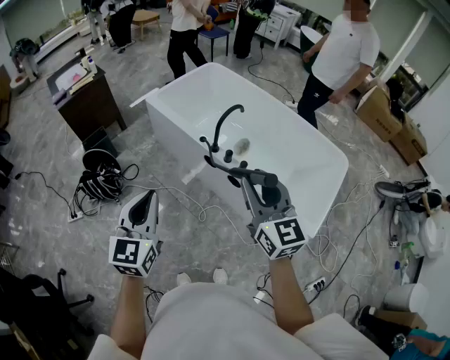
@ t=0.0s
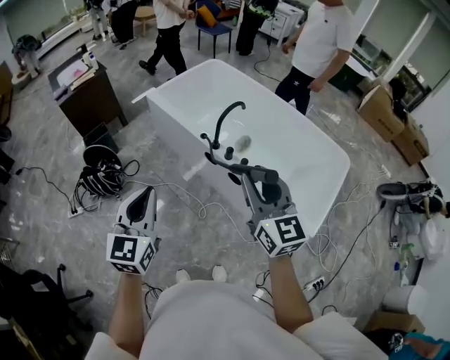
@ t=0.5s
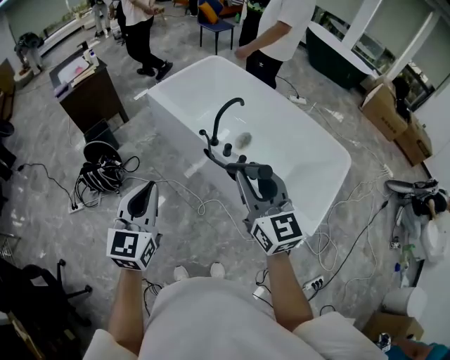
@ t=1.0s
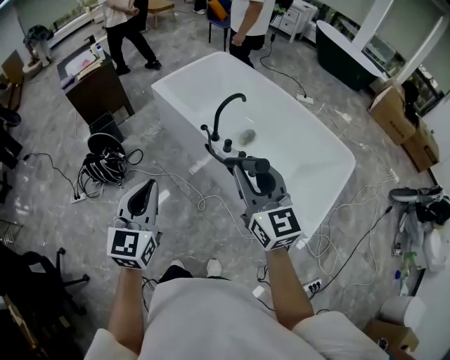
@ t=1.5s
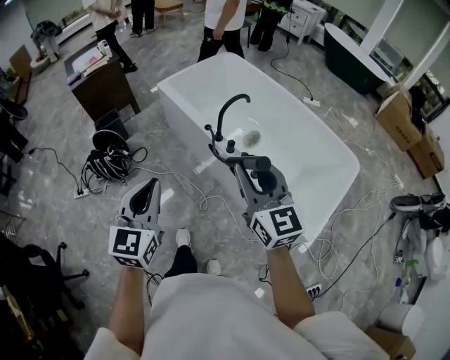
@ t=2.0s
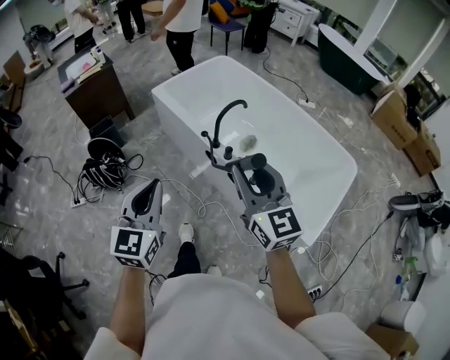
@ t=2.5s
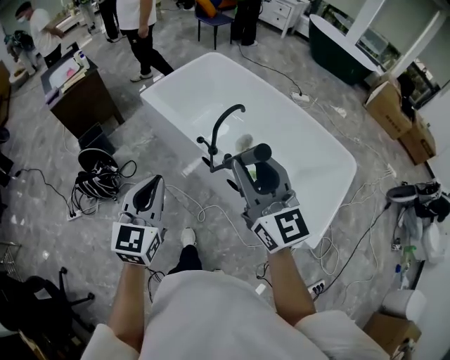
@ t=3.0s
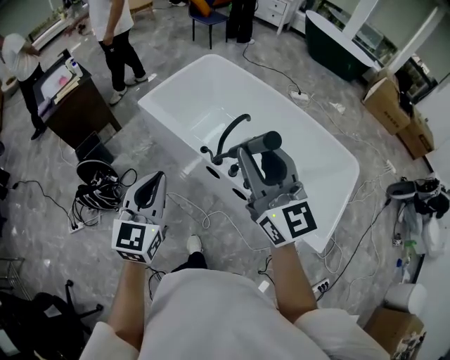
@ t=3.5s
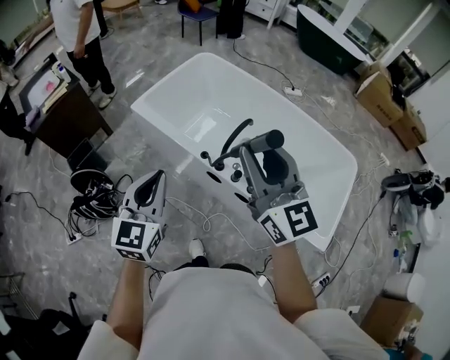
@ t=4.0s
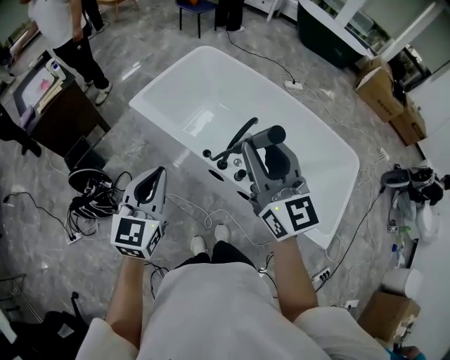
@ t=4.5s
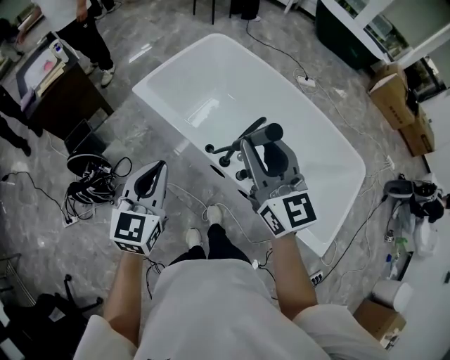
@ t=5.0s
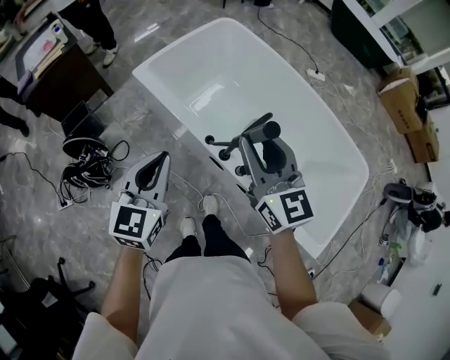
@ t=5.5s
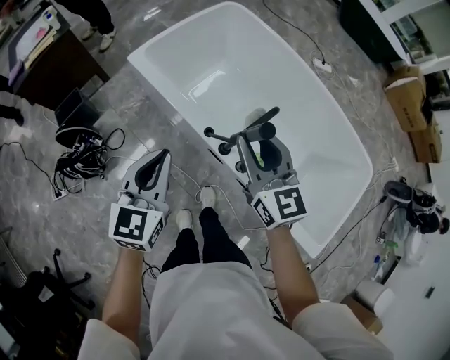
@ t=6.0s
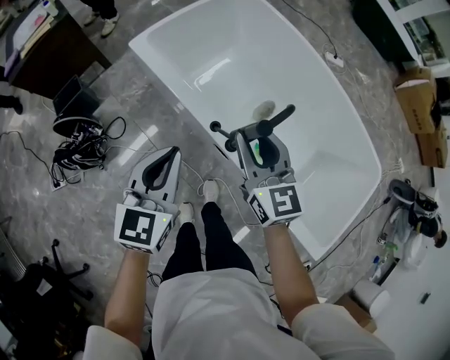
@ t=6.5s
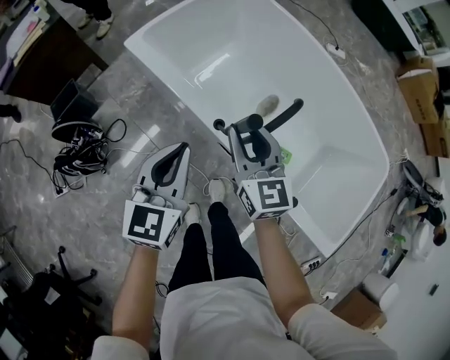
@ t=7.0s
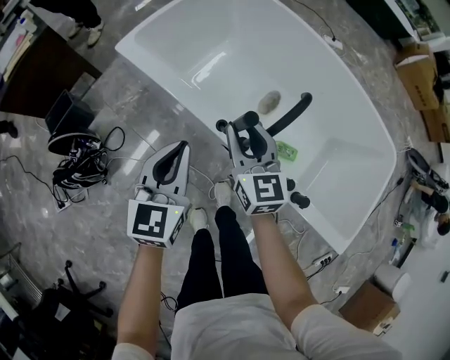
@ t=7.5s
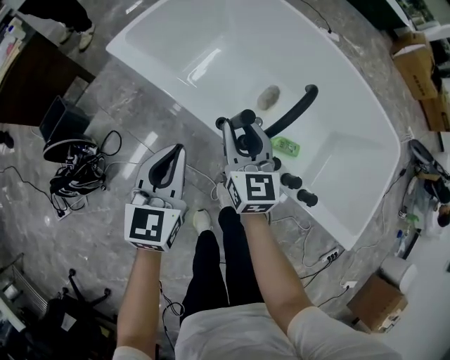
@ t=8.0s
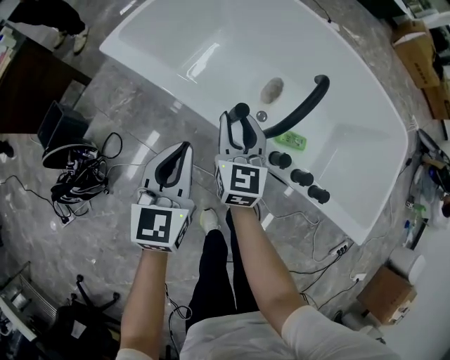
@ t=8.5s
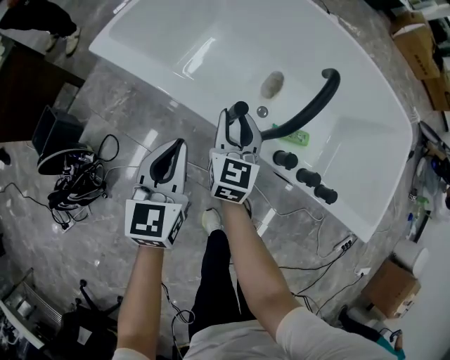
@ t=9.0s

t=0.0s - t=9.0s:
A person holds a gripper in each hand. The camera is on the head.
t=0.0s - t=2.0s: The left gripper travels to the right by about 5 cm.
t=2.0s - t=4.5s: Both grippers travel together forward, some 30 cm.
t=4.5s - t=7.0s: The right gripper moves downward and forward, some 35 cm. The left gripper goes approximately 20 cm downward and forward.
t=7.0s - t=9.0s: Both grippers move downward, roughly 20 cm. The right gripper rotates some 30 degrees.

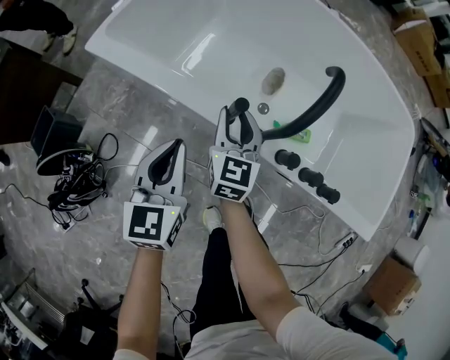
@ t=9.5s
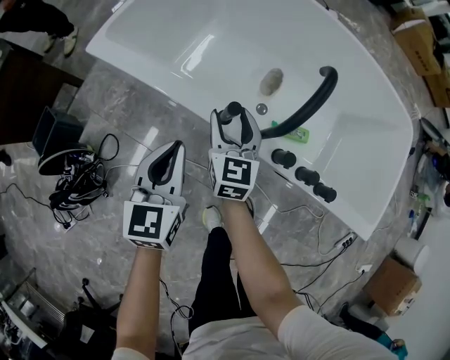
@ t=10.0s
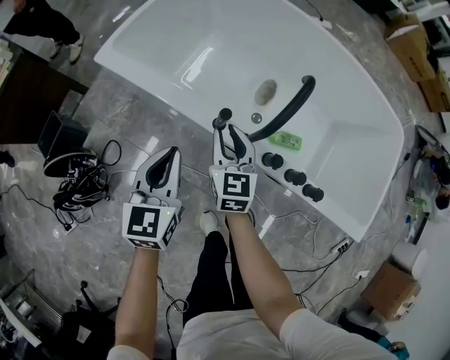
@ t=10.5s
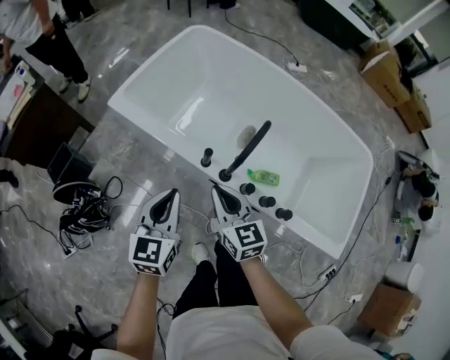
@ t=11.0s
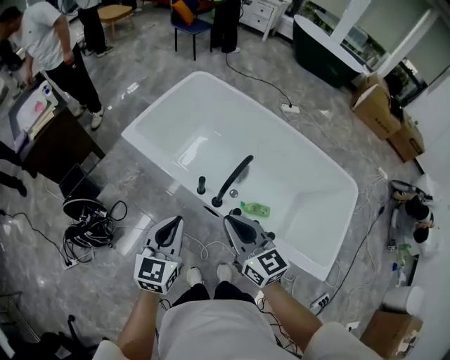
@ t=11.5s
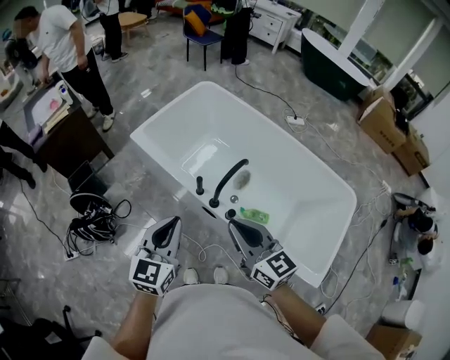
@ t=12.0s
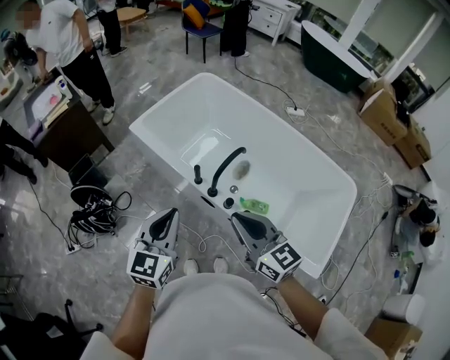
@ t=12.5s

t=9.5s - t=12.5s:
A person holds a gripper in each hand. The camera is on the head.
t=9.5s - t=11.0s: The two grippers go roughly 20 cm upward and backward. The right gripper turns by approximately 30 degrees, and closes up.
t=11.0s - t=12.5s: The right gripper heads upward, backward and to the right, covering roughly 25 cm, and changes its angle by some 20 degrees, while the left gripper moves upward and backward, some 20 cm.

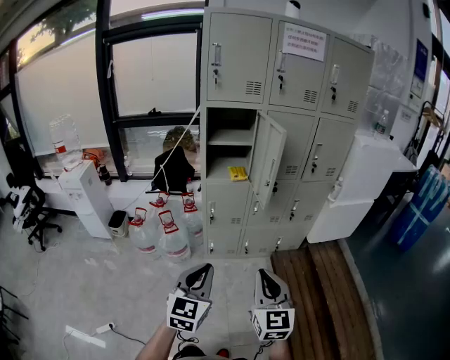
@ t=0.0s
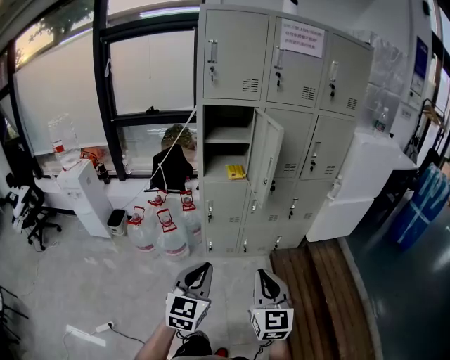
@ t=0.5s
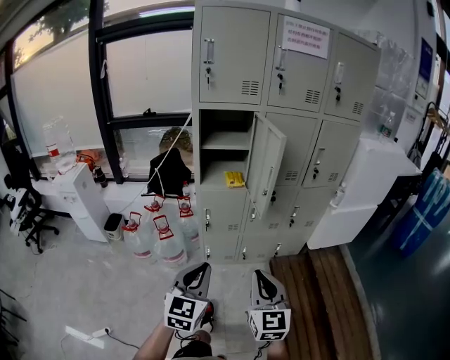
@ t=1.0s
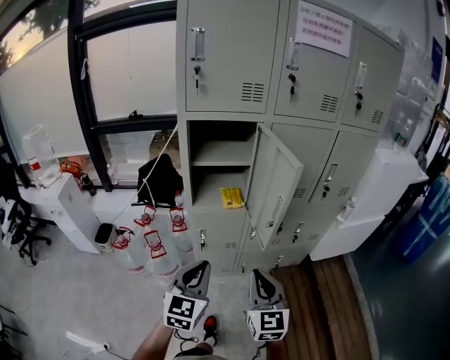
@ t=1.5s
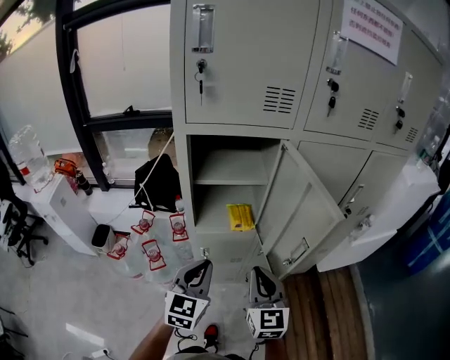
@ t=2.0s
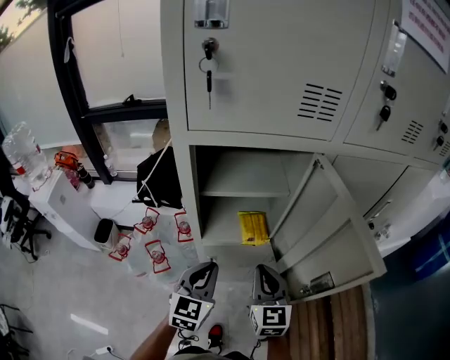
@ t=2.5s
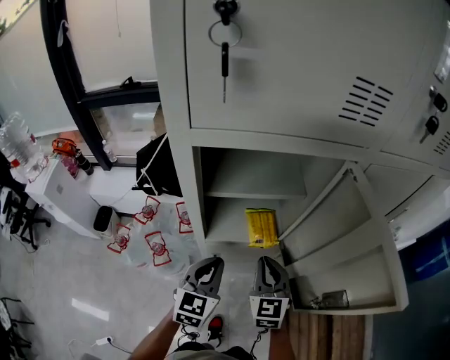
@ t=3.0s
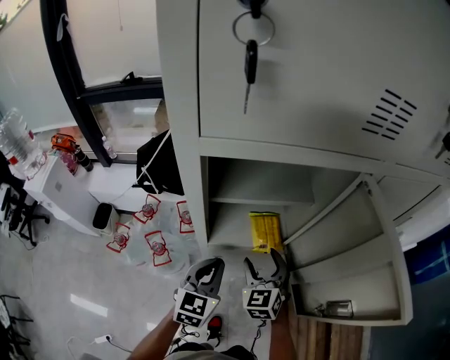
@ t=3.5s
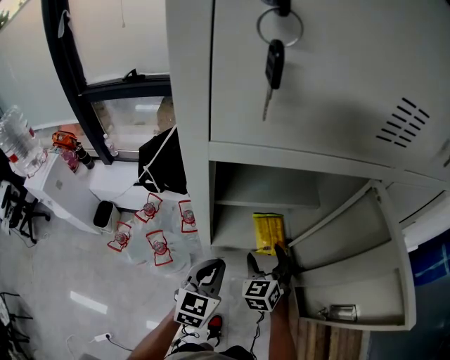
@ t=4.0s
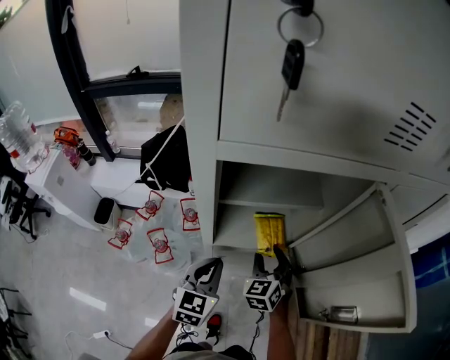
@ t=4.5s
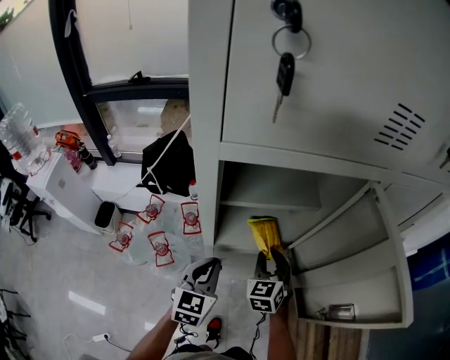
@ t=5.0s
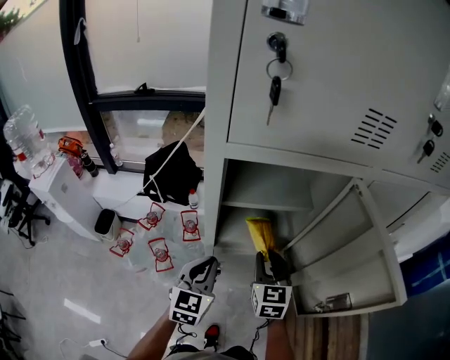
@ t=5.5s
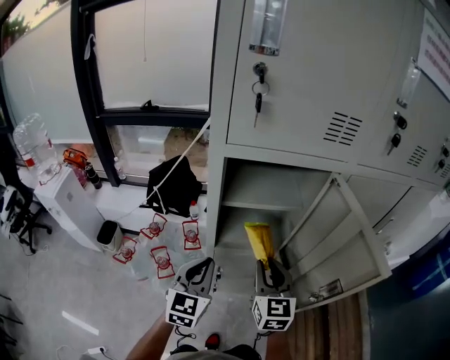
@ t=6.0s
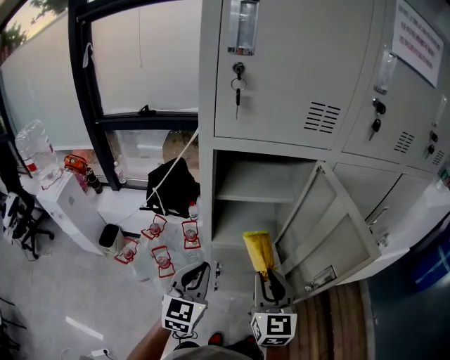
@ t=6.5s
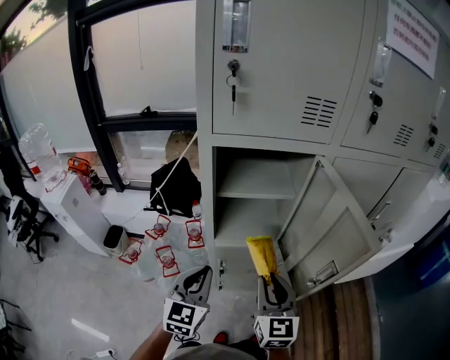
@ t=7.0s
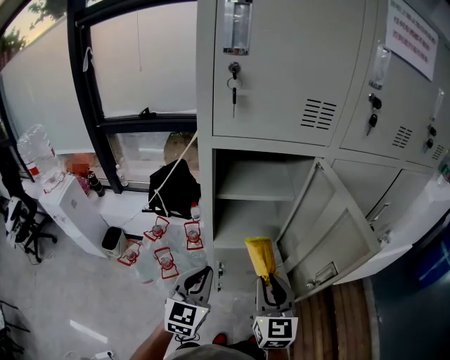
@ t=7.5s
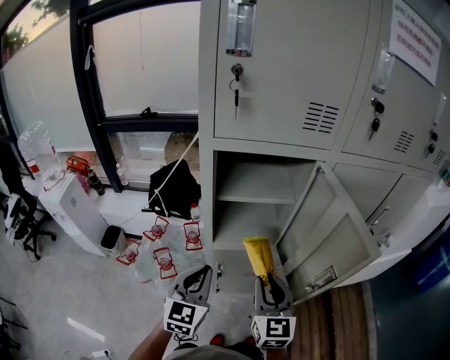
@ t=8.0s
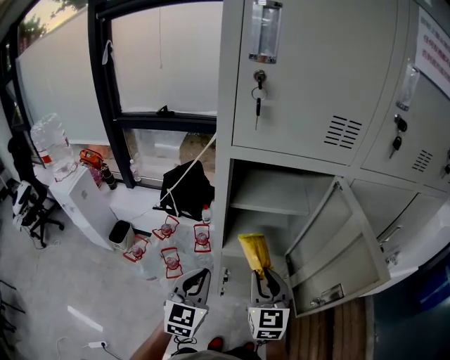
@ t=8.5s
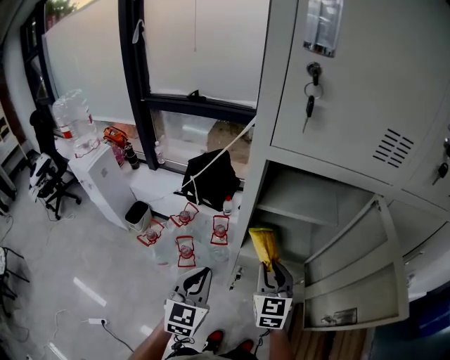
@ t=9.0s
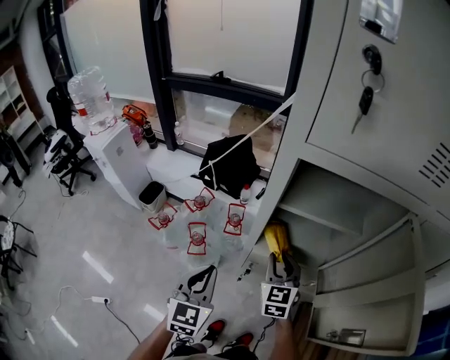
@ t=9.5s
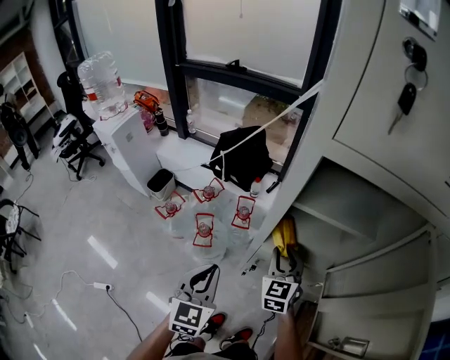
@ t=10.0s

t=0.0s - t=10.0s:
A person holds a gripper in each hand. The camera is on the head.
t=0.0s - t=2.0s: Both grippers are carried forward, roughly 40 cm.
t=2.0s - t=4.0s: The left gripper moves forward and downward, approximately 15 cm, while the right gripper goes roughly 25 cm forward and downward, changes its angle by roughly 30 degrees, and opens its fingers.
t=4.0s - t=6.0s: The left gripper shifts some 10 cm upward and backward. The right gripper shifts approximately 15 cm upward and backward, turns by about 30 degrees, and closes.
t=6.0s - t=8.0s: The left gripper ends up some 5 cm from where it was. Meanwhile the right gripper travels backward by roughly 10 cm.
t=8.0s - t=10.0s: The left gripper moves to the left and downward, approximately 10 cm, and turns by roughly 30 degrees; the right gripper heads forward, downward and to the left, covering approximately 25 cm, and changes its angle by roughly 20 degrees.

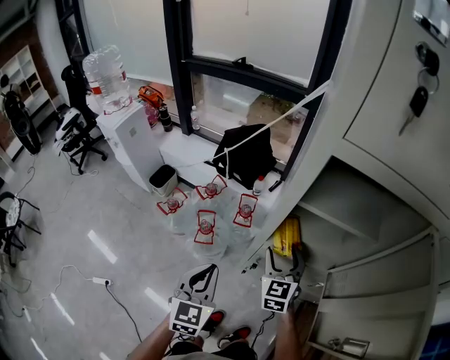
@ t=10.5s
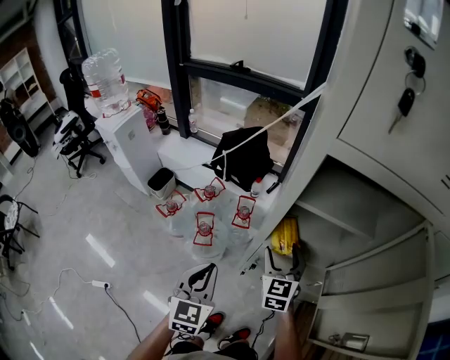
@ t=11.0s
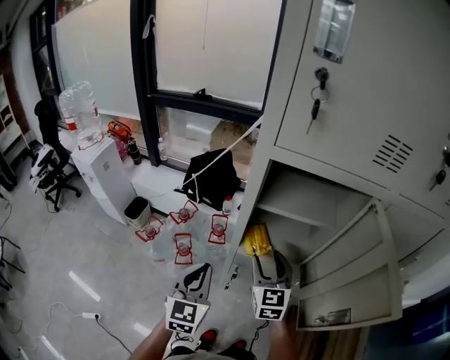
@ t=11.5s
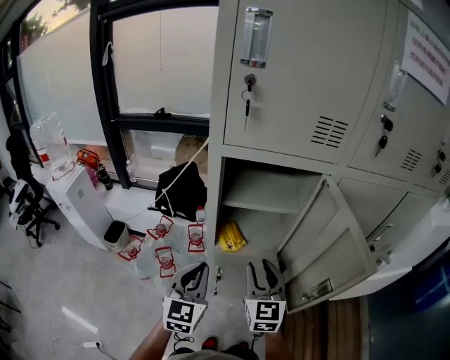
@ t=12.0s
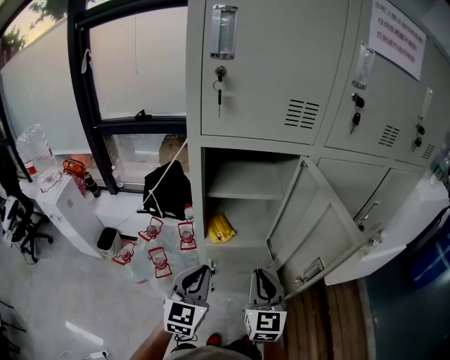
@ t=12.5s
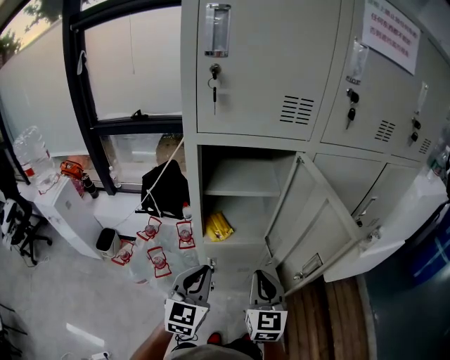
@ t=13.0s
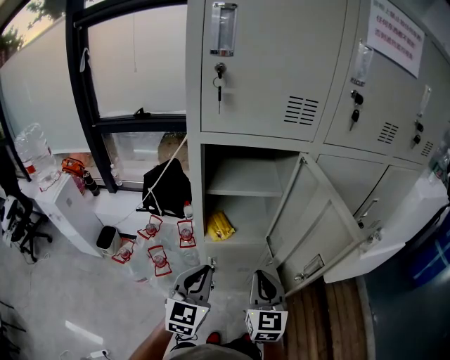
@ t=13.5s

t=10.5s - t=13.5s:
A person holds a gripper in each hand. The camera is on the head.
t=10.5s - t=12.0s: The right gripper goes about 20 cm upward, backward and to the right, while the left gripper heads upward and to the right, covering approximately 15 cm, and changes its angle by about 20 degrees.
t=12.0s - t=13.5s: The right gripper heads backward, covering about 5 cm, and closes up. Meanwhile the left gripper shifts by roughly 5 cm.

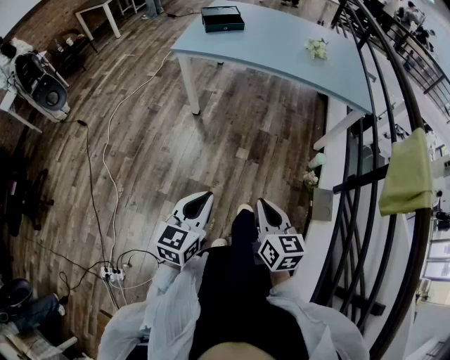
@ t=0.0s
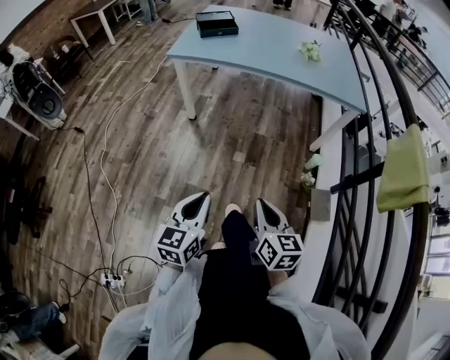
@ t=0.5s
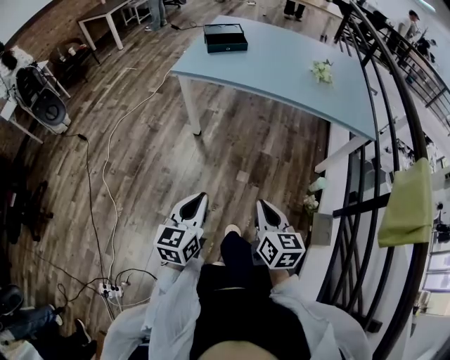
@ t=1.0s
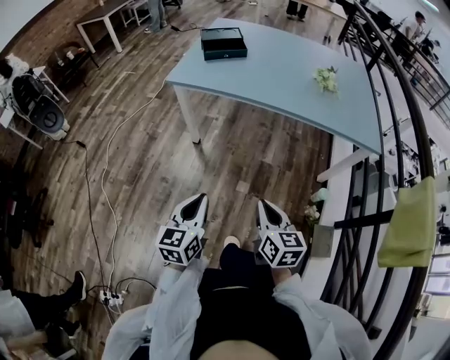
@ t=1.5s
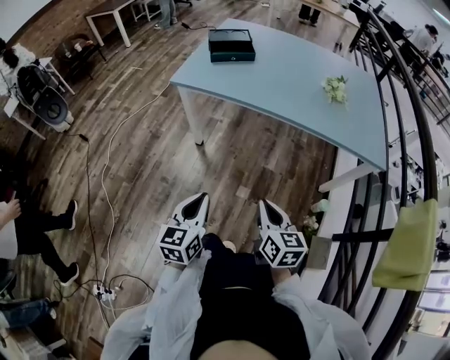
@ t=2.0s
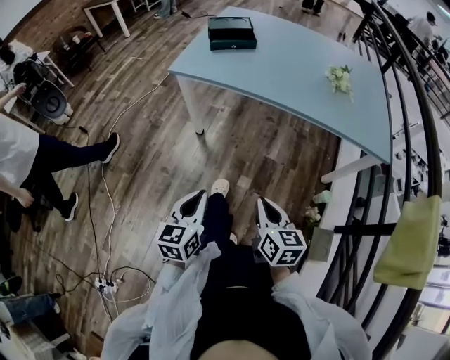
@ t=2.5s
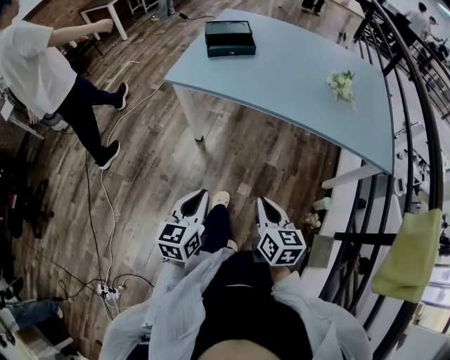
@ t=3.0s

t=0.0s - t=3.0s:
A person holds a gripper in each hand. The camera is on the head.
t=0.0s - t=1.5s: The grippers both shift forward by some 20 cm.
t=1.5s - t=3.0s: The two grippers go roughly 10 cm forward.
